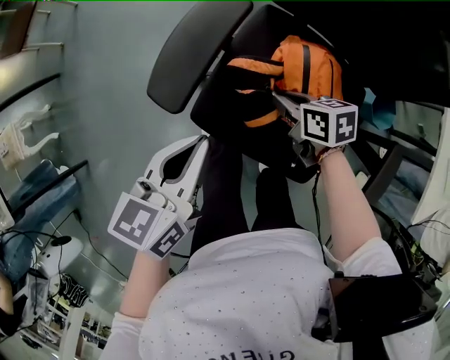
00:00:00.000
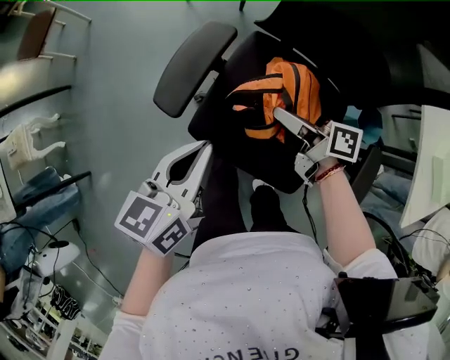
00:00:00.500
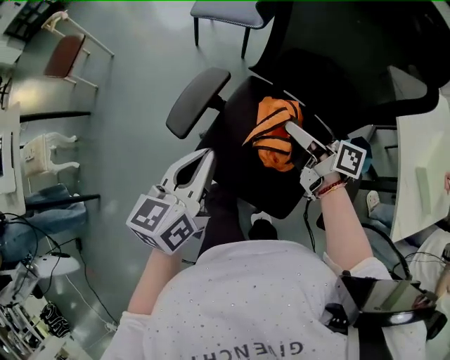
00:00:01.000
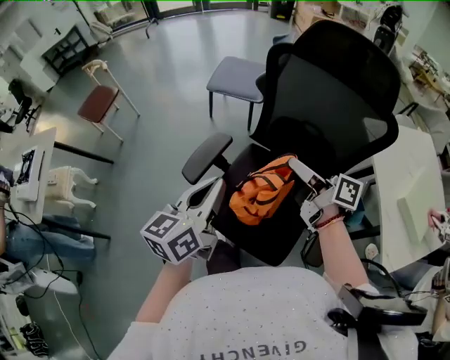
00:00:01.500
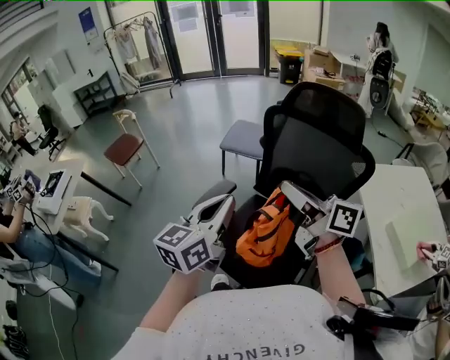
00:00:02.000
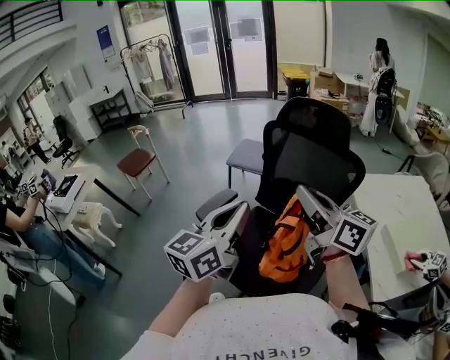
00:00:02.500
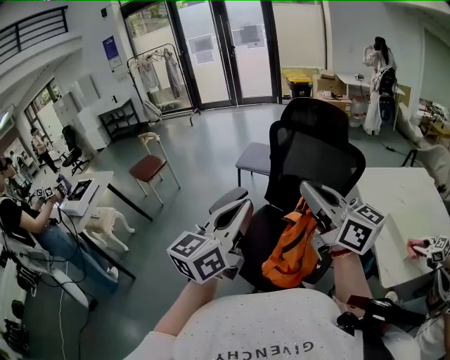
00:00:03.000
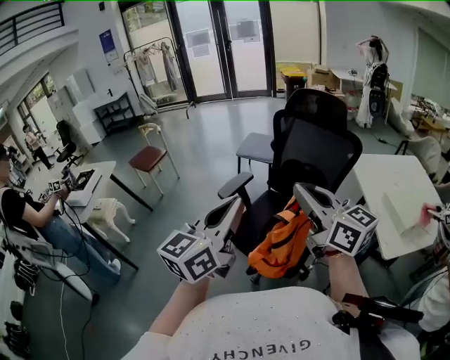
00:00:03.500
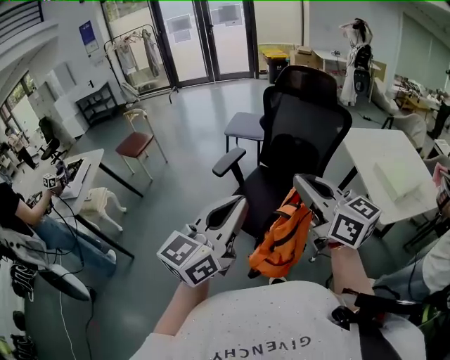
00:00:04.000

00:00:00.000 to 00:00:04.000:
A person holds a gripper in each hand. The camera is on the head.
00:00:00.000 to 00:00:02.000: Both grippers travel together upward, roughly 40 cm. The left gripper turns by some 30 degrees, while the right gripper tilts its fingers approximately 60 degrees upward.
00:00:02.000 to 00:00:04.000: Both grippers move backward, about 30 cm. The right gripper rotates some 30 degrees.

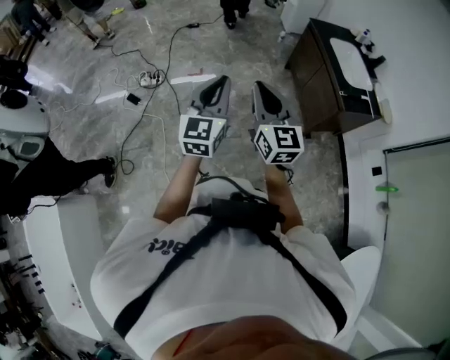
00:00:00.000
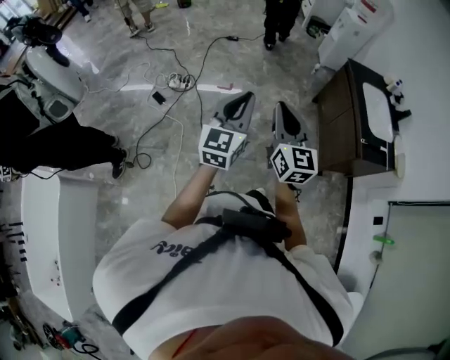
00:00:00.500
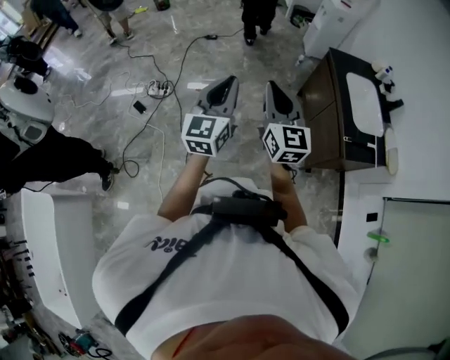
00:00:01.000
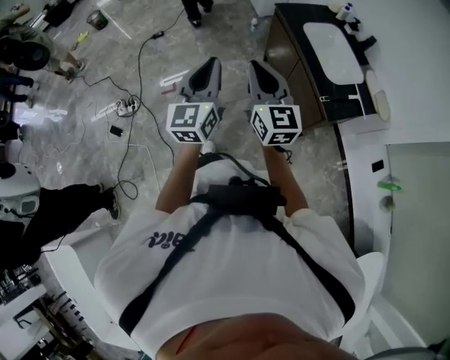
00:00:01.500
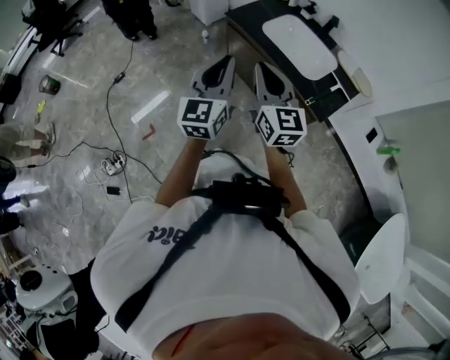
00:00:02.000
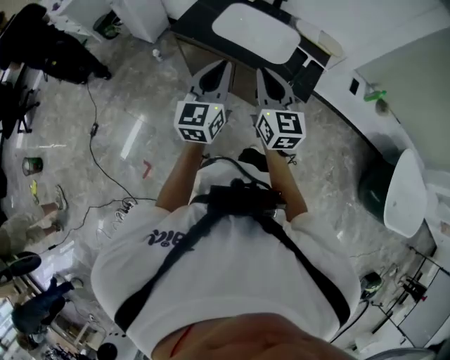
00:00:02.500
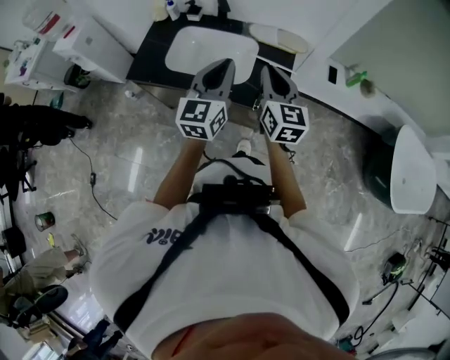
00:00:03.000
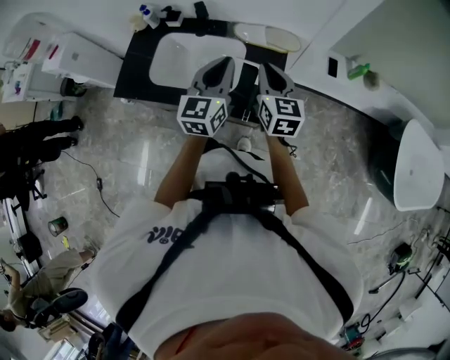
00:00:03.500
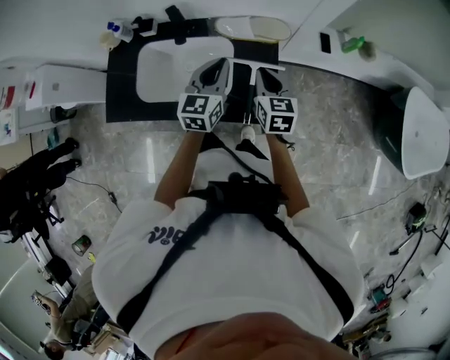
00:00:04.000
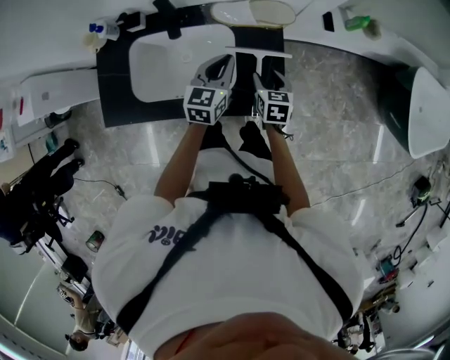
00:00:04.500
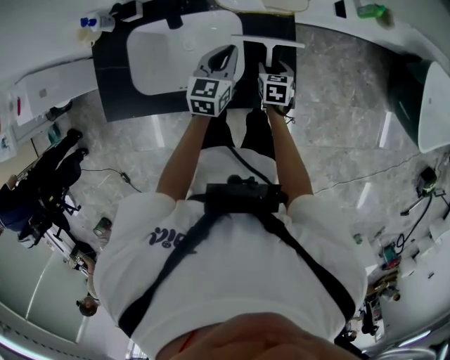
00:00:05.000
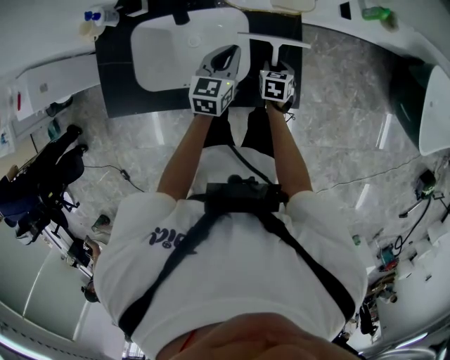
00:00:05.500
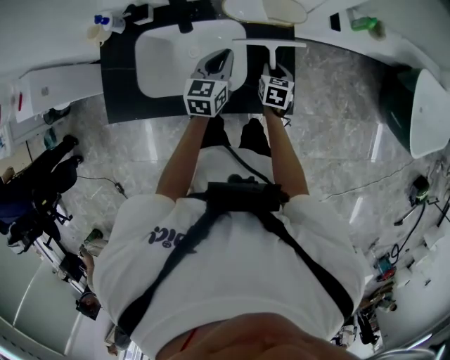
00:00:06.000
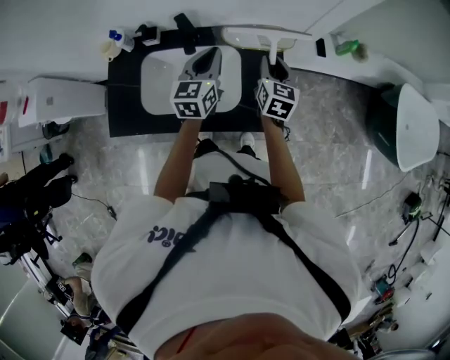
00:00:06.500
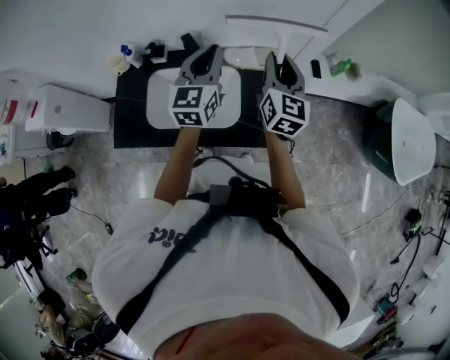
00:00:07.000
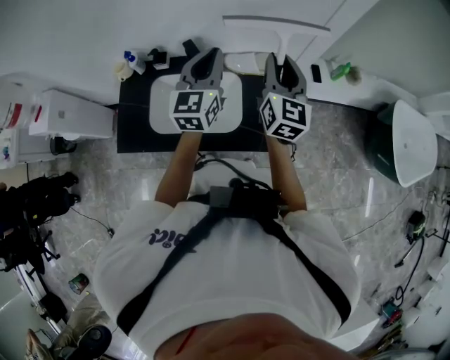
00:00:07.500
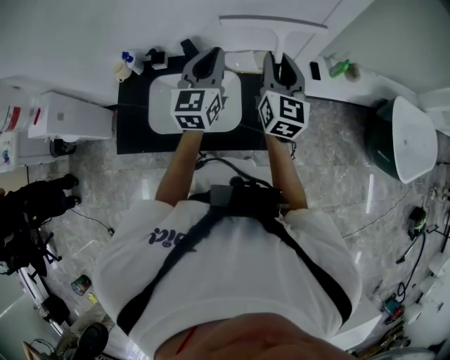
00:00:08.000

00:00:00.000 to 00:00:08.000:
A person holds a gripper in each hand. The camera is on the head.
00:00:00.000 to 00:00:02.000: The two grippers travel together, roughly 50 cm. The right gripper turns by some 30 degrees. The left gripper turns by approximately 30 degrees.
00:00:02.000 to 00:00:04.000: Both grippers are carried about 50 cm. The left gripper turns by about 50 degrees; the right gripper angles its fingers downward, by approximately 30 degrees.
00:00:04.000 to 00:00:06.000: The right gripper moves downward, approximately 20 cm, rotates about 30 degrees, and opens its fingers, while the left gripper heads downward, covering about 10 cm.
00:00:06.000 to 00:00:08.000: The right gripper goes about 40 cm upward, and tips its fingers upward by approximately 50 degrees. Meanwhile the left gripper travels upward by about 25 cm, and turns by approximately 30 degrees.

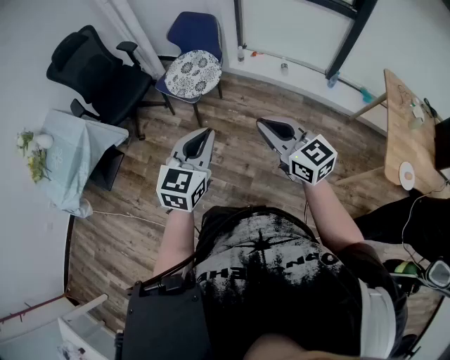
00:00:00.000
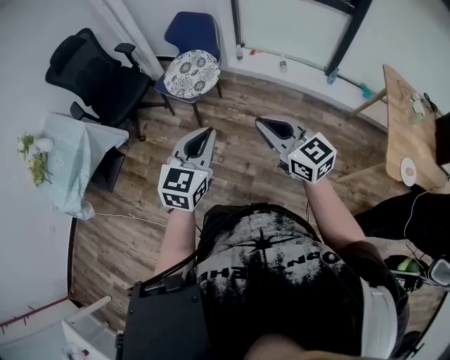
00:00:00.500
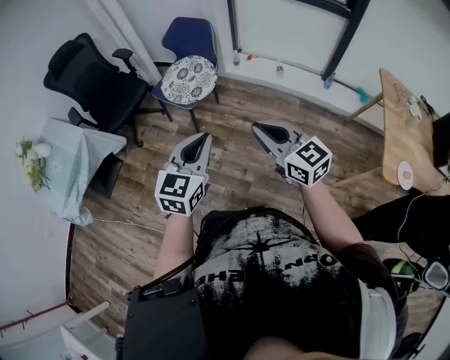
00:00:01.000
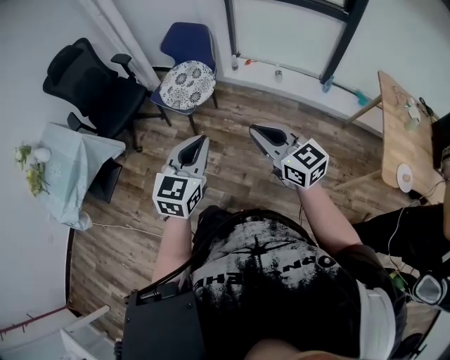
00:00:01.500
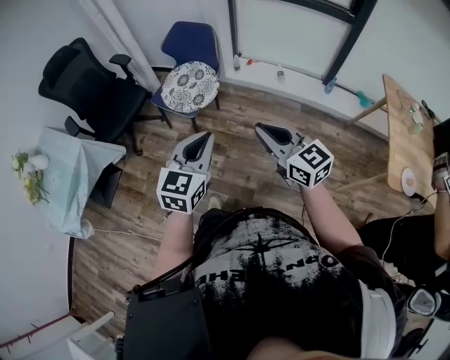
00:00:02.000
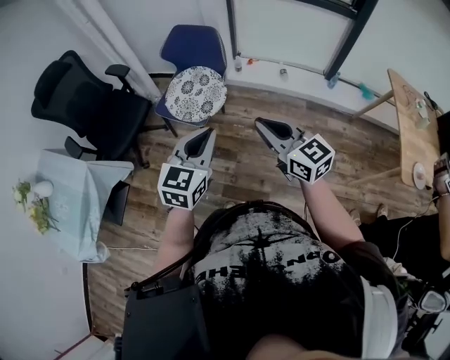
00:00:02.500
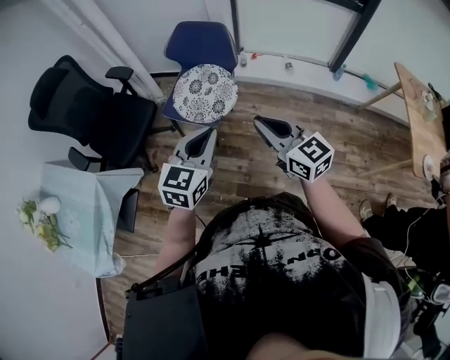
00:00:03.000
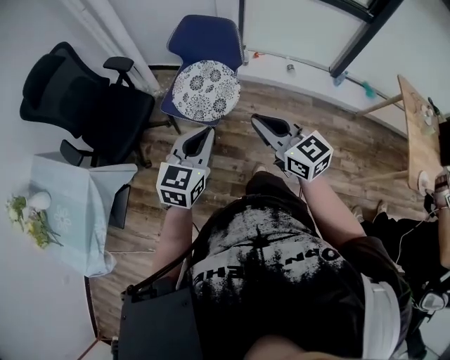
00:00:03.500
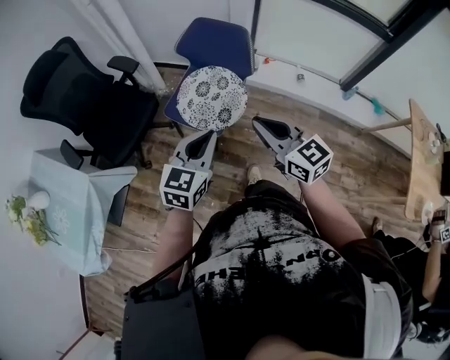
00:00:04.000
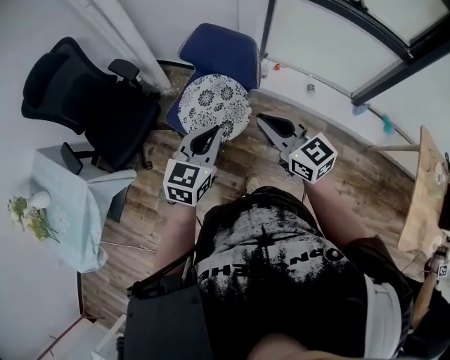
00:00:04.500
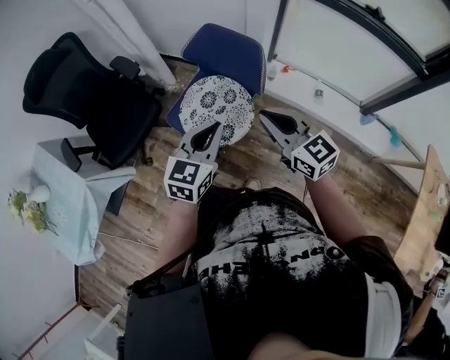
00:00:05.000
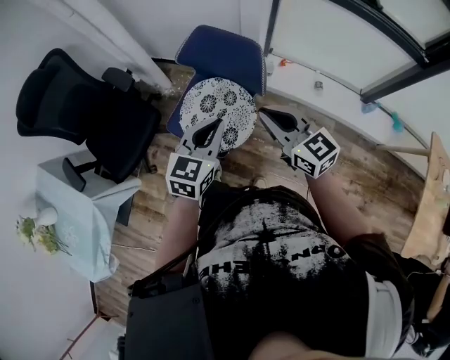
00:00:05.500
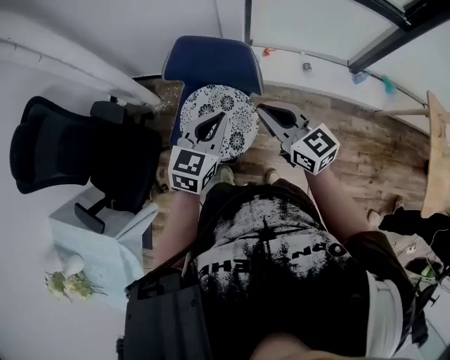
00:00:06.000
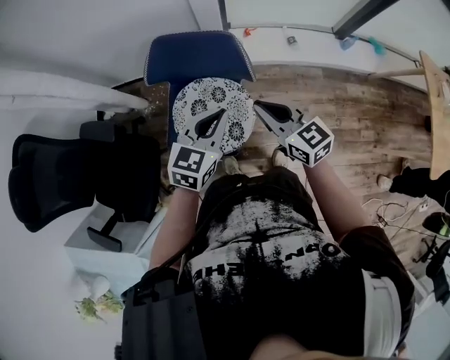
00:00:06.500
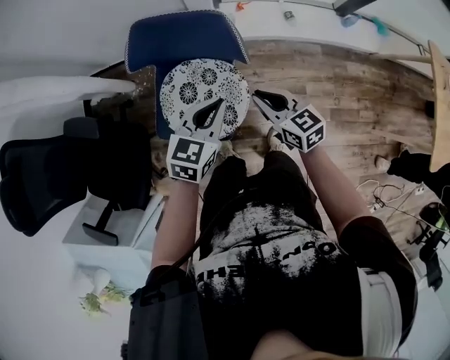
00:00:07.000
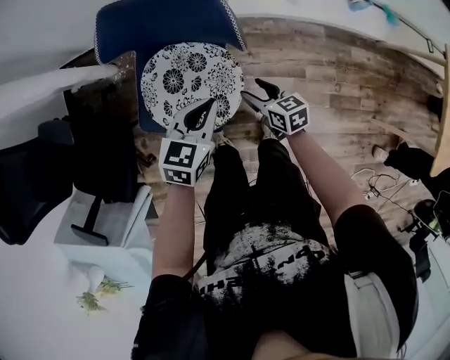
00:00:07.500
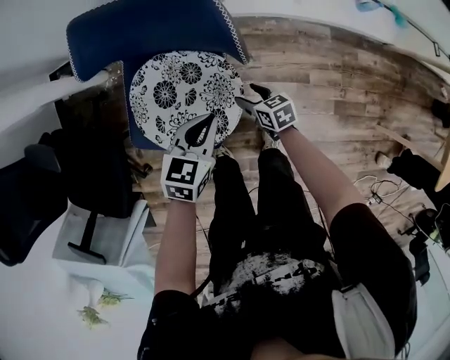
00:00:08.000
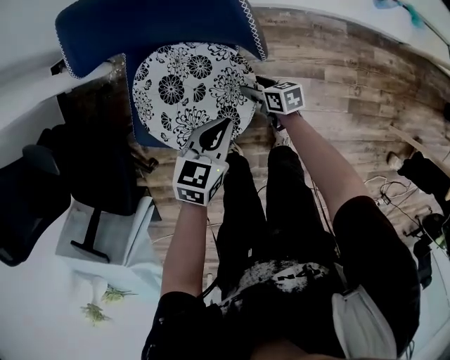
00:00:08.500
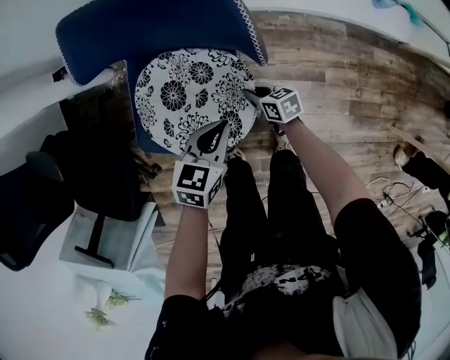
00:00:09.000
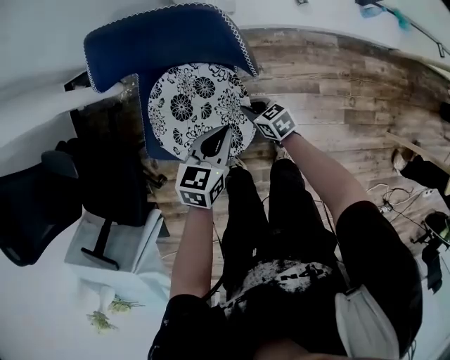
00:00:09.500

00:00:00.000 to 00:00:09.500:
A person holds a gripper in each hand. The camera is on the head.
00:00:00.000 to 00:00:02.000: The two grippers go about 10 cm forward.
00:00:02.000 to 00:00:04.000: Both grippers travel together forward and to the left, roughly 35 cm.
00:00:04.000 to 00:00:05.500: Both grippers travel together forward, roughly 20 cm.
00:00:05.500 to 00:00:07.500: The left gripper moves downward, roughly 20 cm, and swivels about 30 degrees. Meanwhile the right gripper travels downward by approximately 35 cm, tips its fingers downward by approximately 30 degrees, and opens up.
00:00:07.500 to 00:00:09.500: Both grippers move downward, roughly 10 cm. The right gripper closes up.

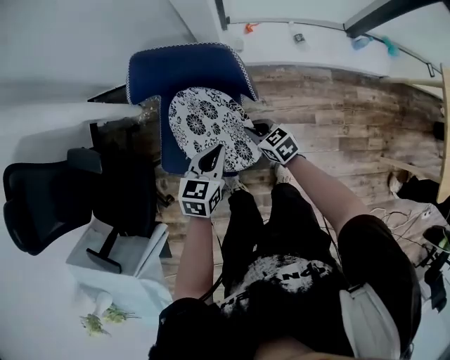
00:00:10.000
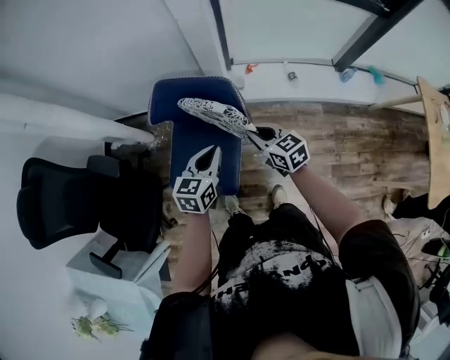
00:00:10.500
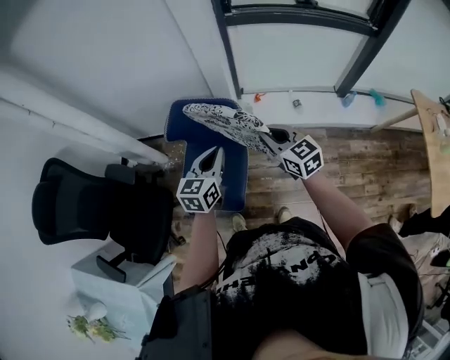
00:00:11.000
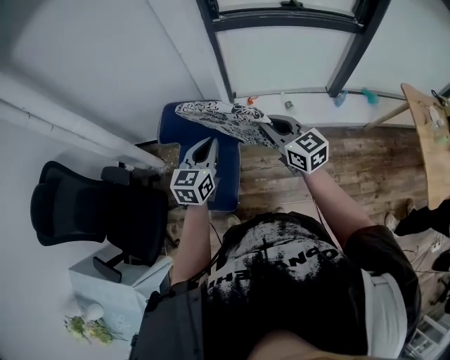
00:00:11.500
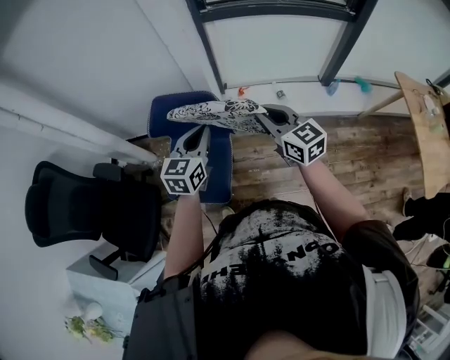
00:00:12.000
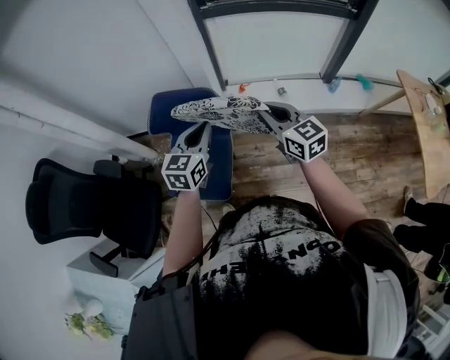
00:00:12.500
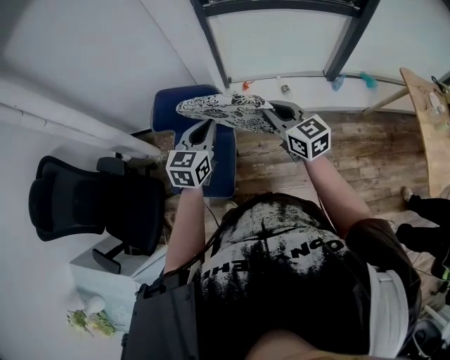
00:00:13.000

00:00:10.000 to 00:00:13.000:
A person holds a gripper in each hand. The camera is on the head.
00:00:10.000 to 00:00:11.500: The right gripper shifts approximately 40 cm upward, and angles its fingers upward, by approximately 30 degrees, while the left gripper moves upward, approximately 25 cm, and swivels approximately 30 degrees.
00:00:11.500 to 00:00:13.000: The grippers stay close to where they were, moving slightly.

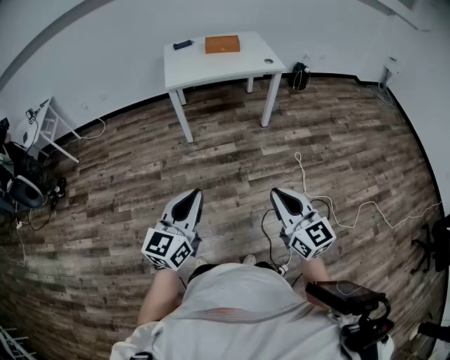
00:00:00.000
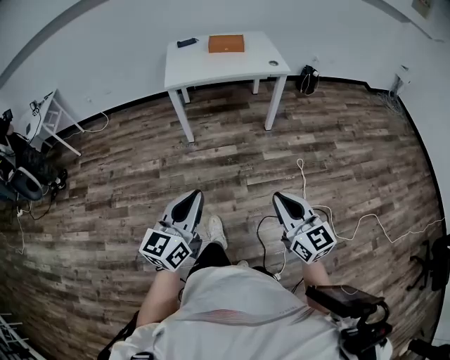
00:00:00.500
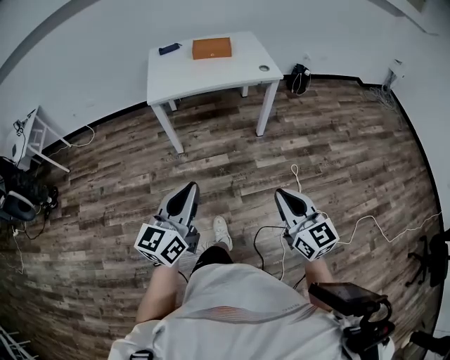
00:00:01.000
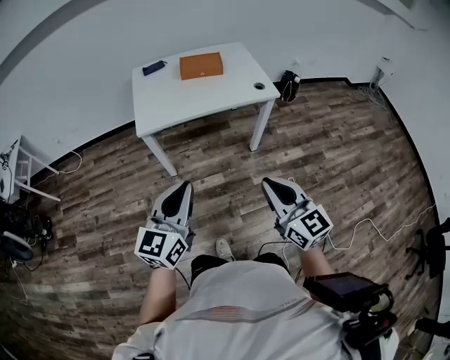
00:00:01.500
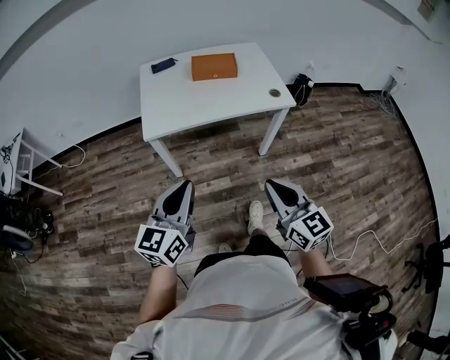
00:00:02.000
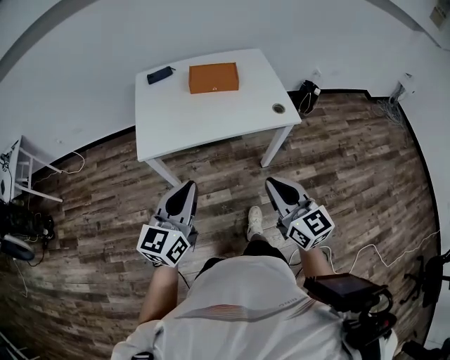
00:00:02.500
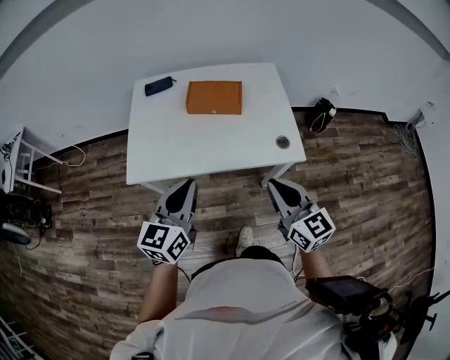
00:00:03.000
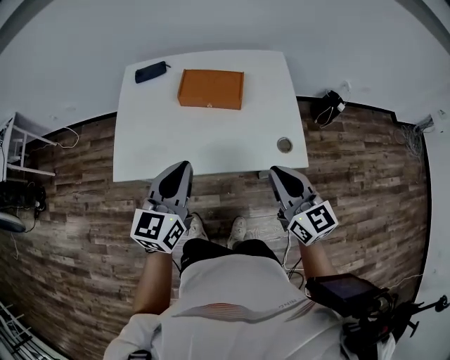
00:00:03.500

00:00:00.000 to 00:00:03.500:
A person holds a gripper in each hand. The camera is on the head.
00:00:00.000 to 00:00:02.000: Both grippers are carried forward, approximately 40 cm.
00:00:02.000 to 00:00:03.500: The two grippers travel together, forward, approximately 40 cm.
